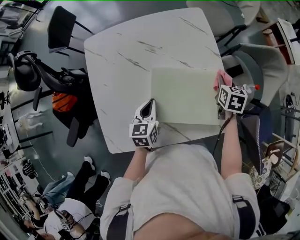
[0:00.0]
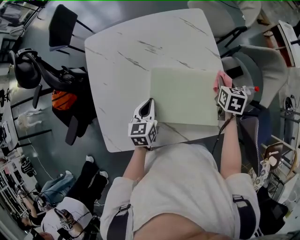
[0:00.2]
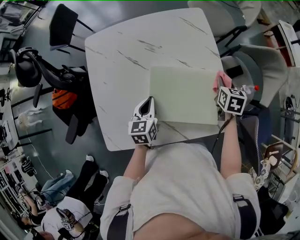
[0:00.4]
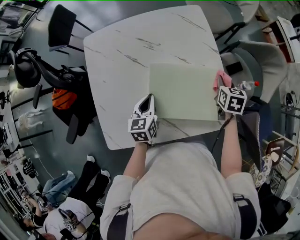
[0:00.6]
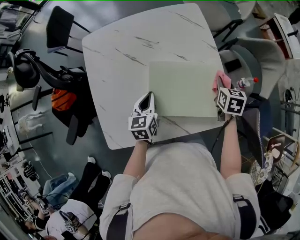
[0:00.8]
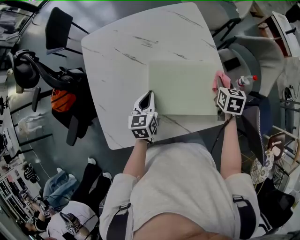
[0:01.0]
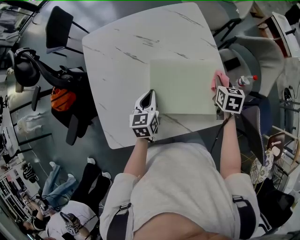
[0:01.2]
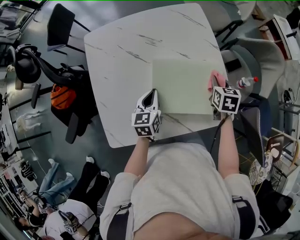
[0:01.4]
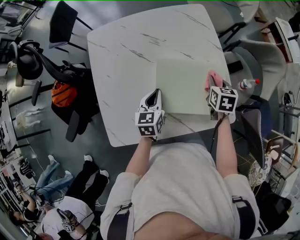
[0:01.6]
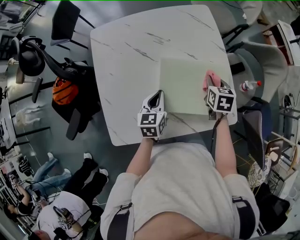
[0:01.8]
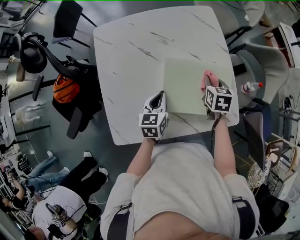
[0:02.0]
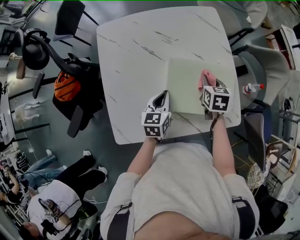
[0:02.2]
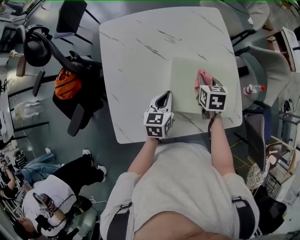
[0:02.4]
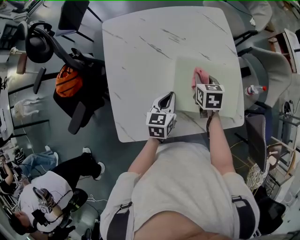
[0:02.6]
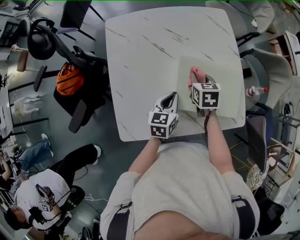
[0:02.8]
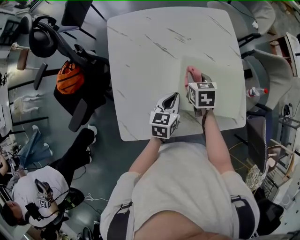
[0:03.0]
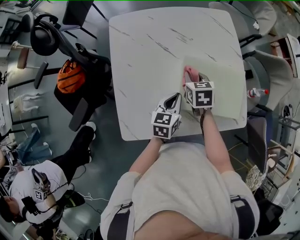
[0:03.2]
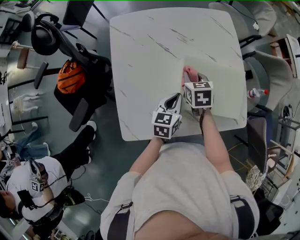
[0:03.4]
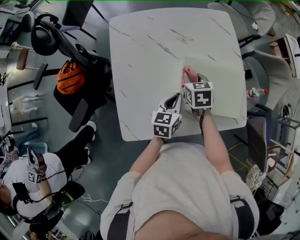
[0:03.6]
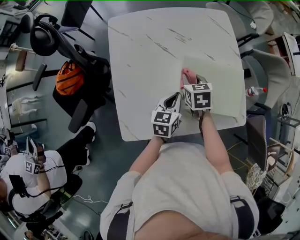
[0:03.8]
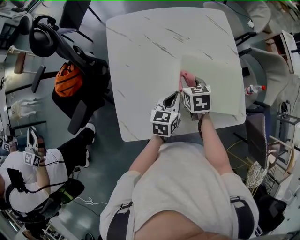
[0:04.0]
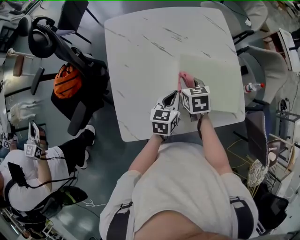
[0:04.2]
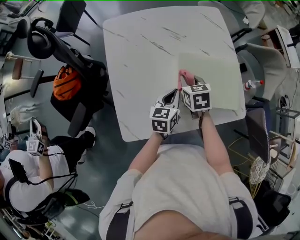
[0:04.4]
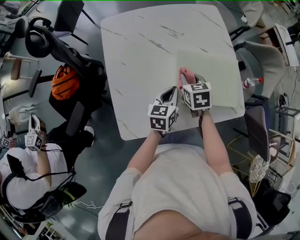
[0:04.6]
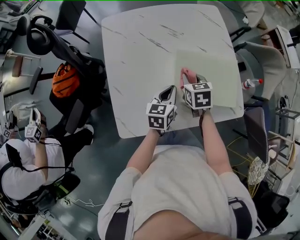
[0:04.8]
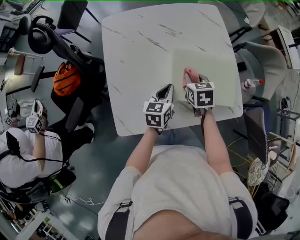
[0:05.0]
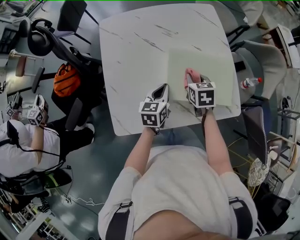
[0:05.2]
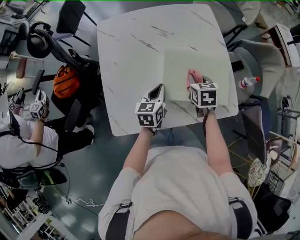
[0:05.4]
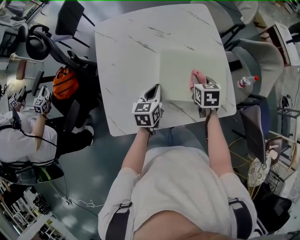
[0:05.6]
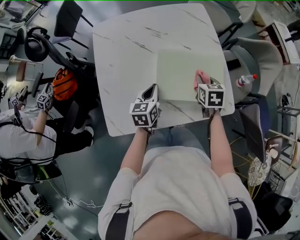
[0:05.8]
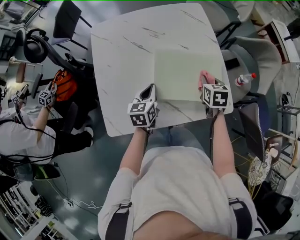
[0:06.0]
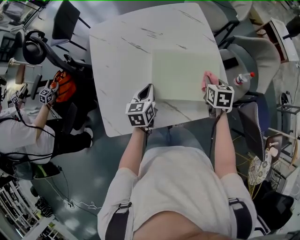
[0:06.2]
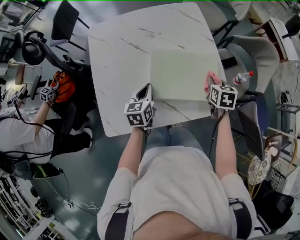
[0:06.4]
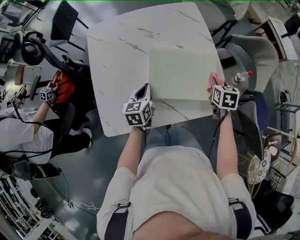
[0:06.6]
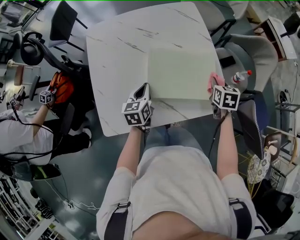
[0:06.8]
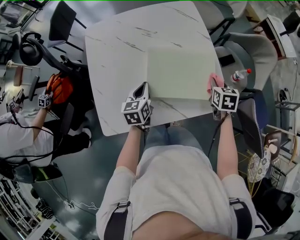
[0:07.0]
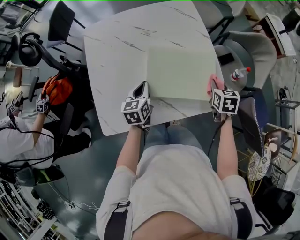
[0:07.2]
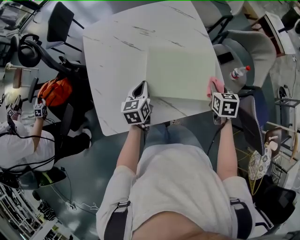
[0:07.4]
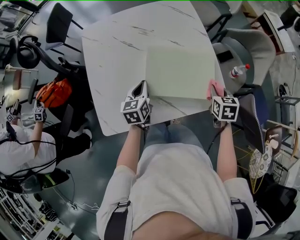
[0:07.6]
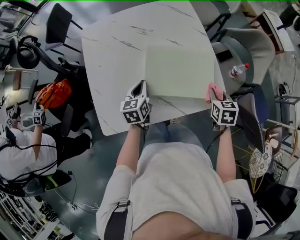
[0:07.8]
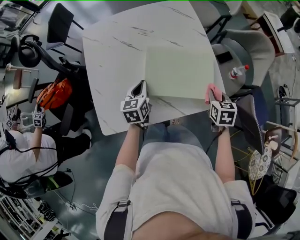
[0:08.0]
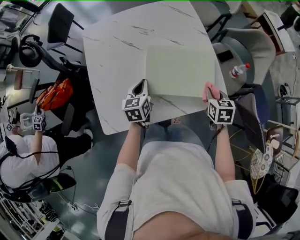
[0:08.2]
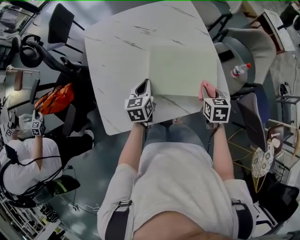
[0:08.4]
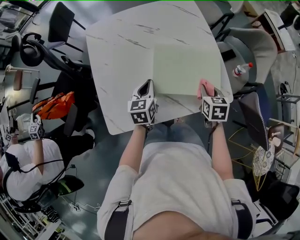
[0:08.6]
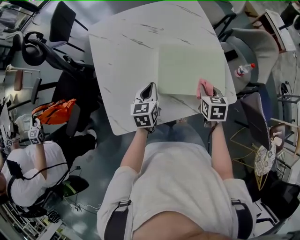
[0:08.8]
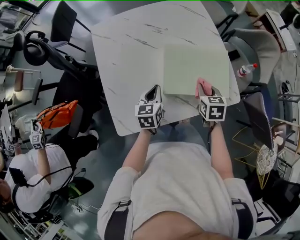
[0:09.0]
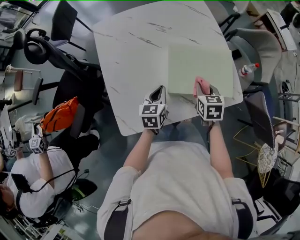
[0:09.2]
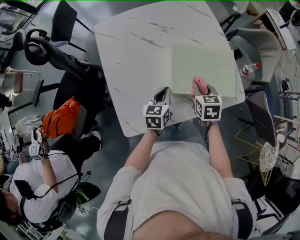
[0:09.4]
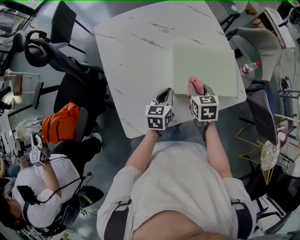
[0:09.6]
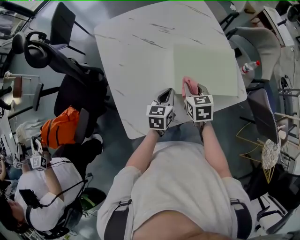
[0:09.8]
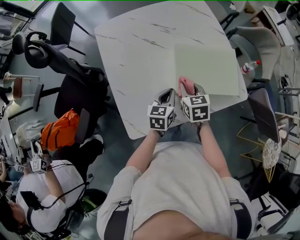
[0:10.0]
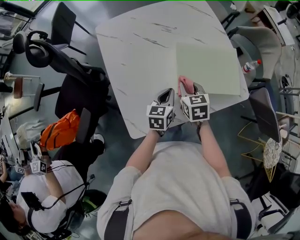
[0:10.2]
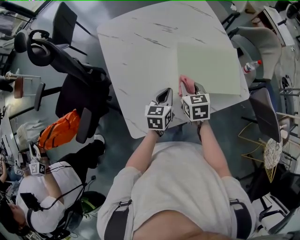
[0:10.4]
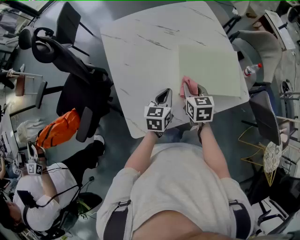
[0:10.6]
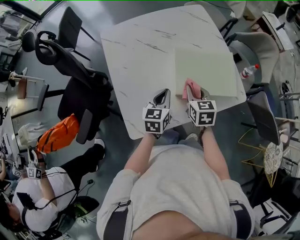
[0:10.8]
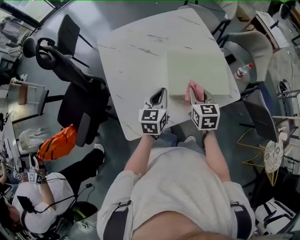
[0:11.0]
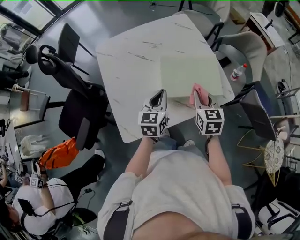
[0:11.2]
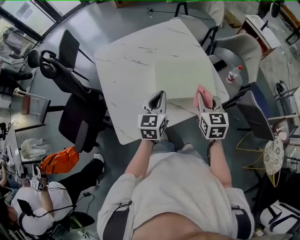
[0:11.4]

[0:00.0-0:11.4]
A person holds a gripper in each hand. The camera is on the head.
0:00.0 to 0:01.4: The right gripper is displaced backward by roughly 5 cm.
0:01.4 to 0:02.8: The right gripper shifts some 20 cm to the left.
0:02.8 to 0:04.2: The right gripper heads to the left, covering roughly 5 cm.
0:04.2 to 0:05.6: The right gripper travels to the right by some 15 cm.
0:05.6 to 0:07.2: The right gripper is displaced to the right by approximately 15 cm.
0:07.2 to 0:08.6: The right gripper is displaced to the left by approximately 10 cm.
0:08.6 to 0:10.0: The right gripper moves to the left, about 20 cm.
0:10.0 to 0:11.4: The right gripper moves to the right and upward, about 20 cm, and swivels some 20 degrees, while the left gripper shifts approximately 15 cm upward, and rotates some 20 degrees.

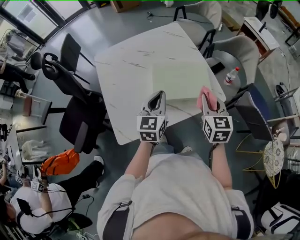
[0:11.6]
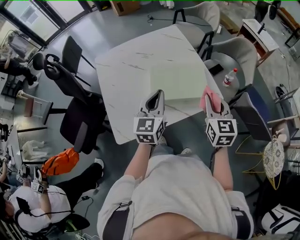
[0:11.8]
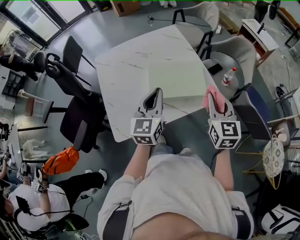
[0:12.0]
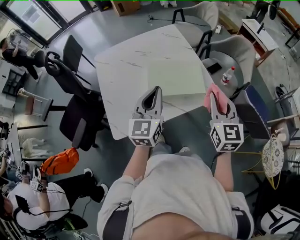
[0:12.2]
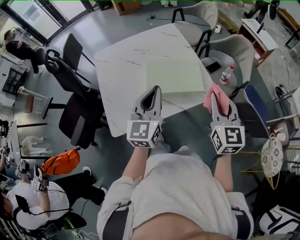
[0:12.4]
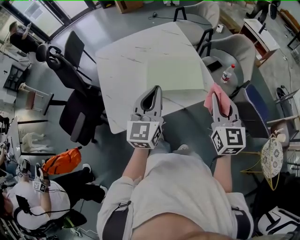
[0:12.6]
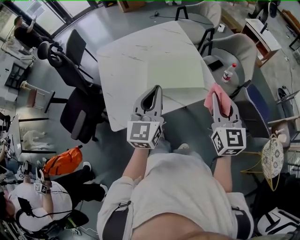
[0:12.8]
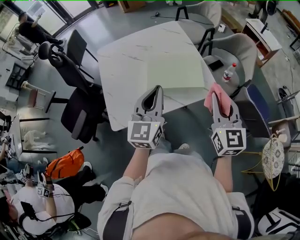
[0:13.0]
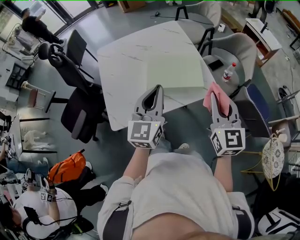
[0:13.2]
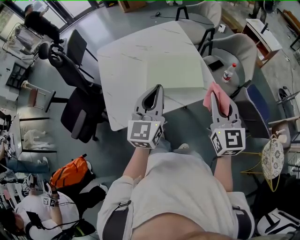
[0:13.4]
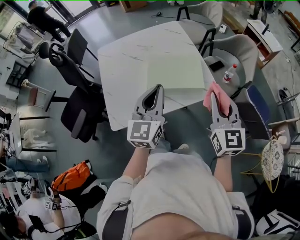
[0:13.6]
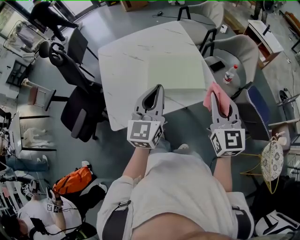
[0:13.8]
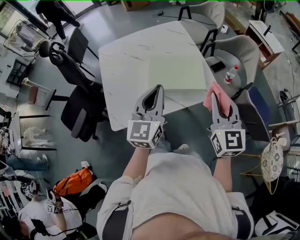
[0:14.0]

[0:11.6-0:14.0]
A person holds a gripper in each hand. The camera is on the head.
0:11.6 to 0:12.8: The right gripper travels upward, backward and to the right by approximately 15 cm. Meanwhile the left gripper heads upward and backward, covering about 10 cm.
0:12.8 to 0:14.0: There are only small adjustments of the grippers.

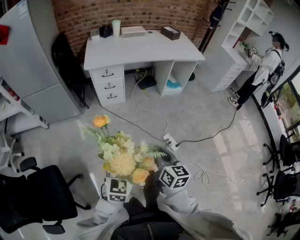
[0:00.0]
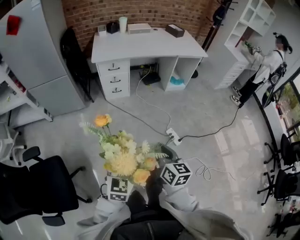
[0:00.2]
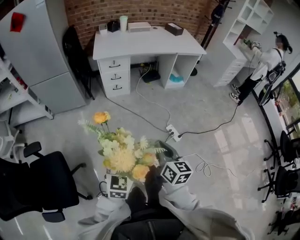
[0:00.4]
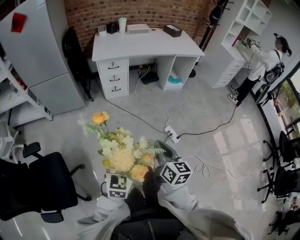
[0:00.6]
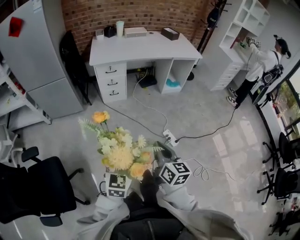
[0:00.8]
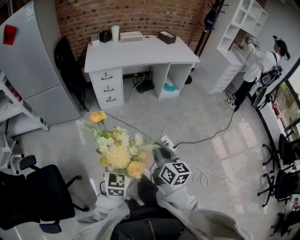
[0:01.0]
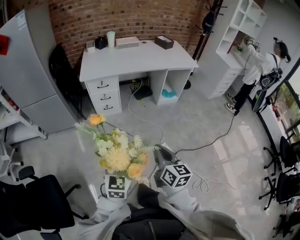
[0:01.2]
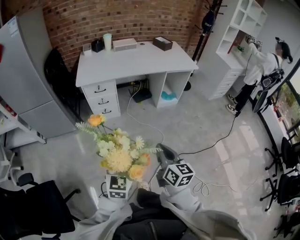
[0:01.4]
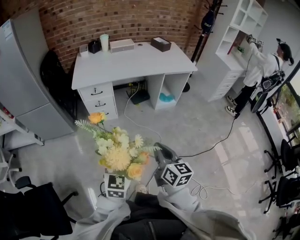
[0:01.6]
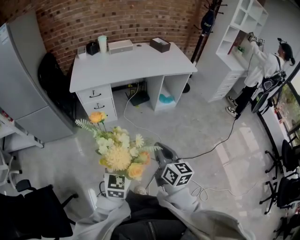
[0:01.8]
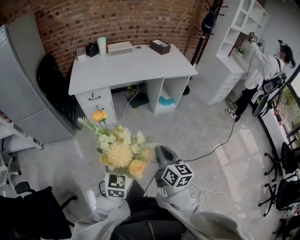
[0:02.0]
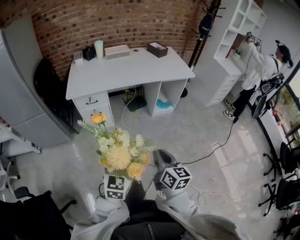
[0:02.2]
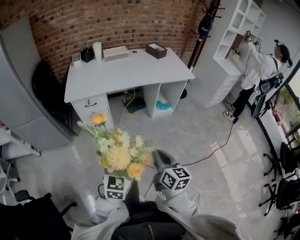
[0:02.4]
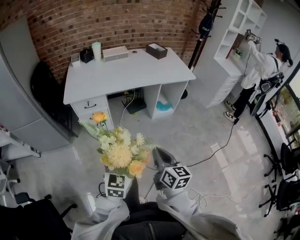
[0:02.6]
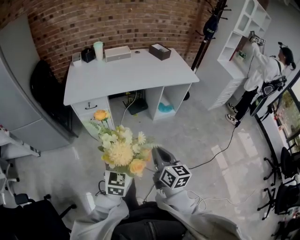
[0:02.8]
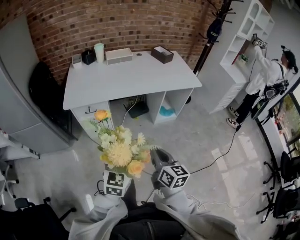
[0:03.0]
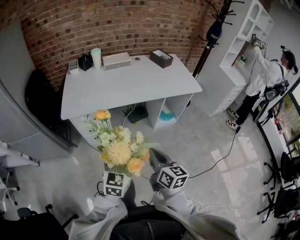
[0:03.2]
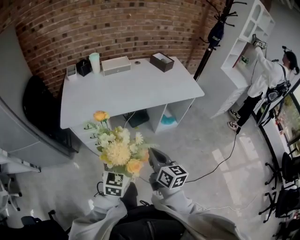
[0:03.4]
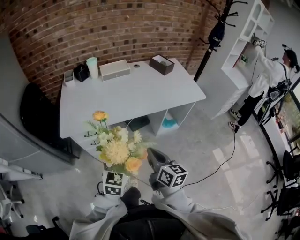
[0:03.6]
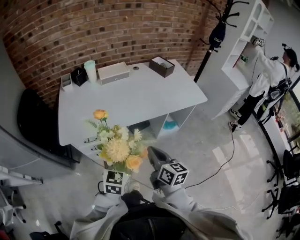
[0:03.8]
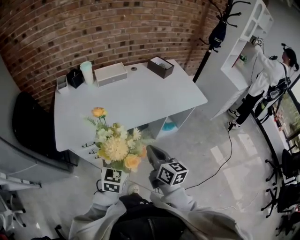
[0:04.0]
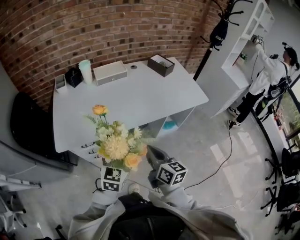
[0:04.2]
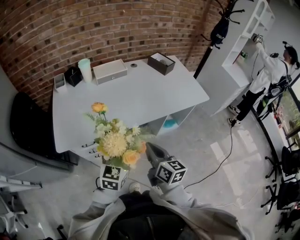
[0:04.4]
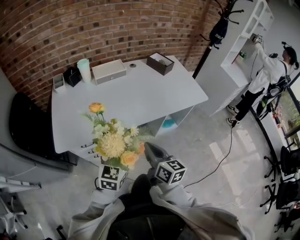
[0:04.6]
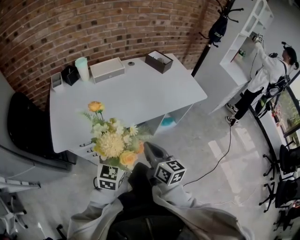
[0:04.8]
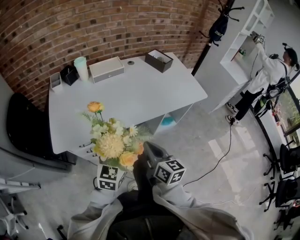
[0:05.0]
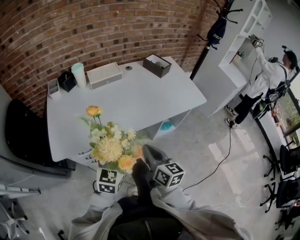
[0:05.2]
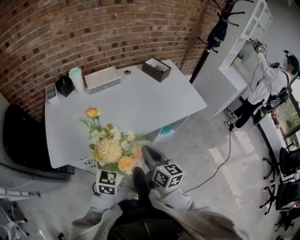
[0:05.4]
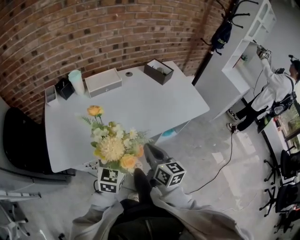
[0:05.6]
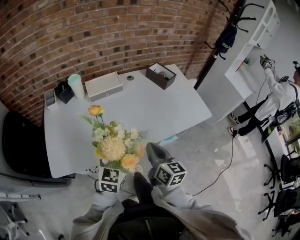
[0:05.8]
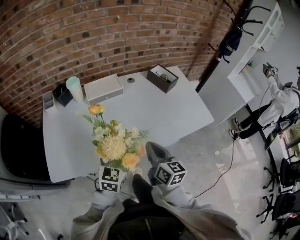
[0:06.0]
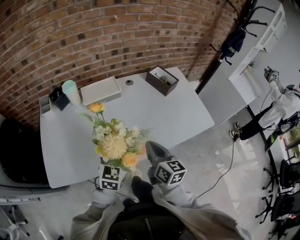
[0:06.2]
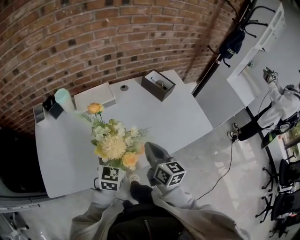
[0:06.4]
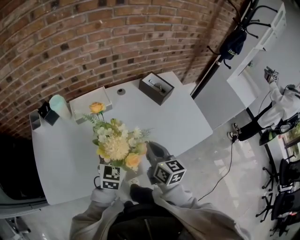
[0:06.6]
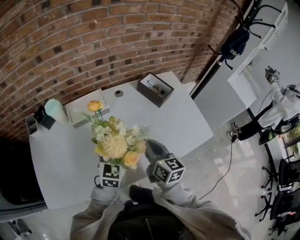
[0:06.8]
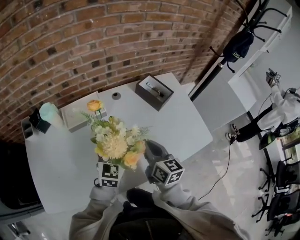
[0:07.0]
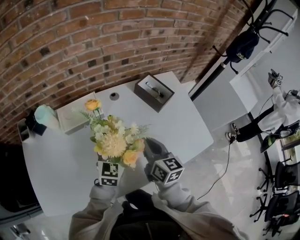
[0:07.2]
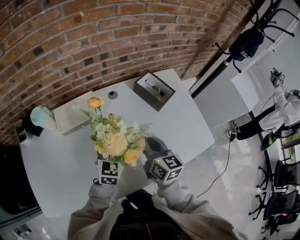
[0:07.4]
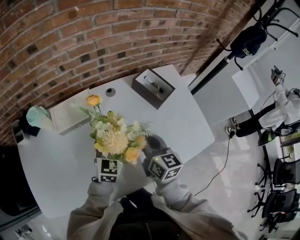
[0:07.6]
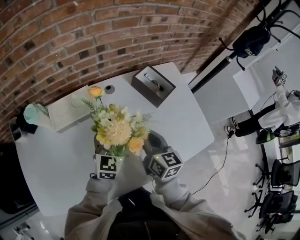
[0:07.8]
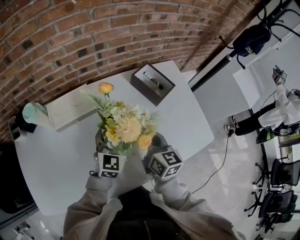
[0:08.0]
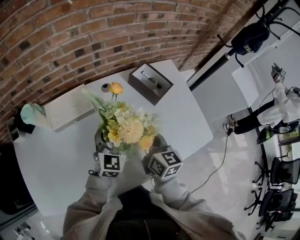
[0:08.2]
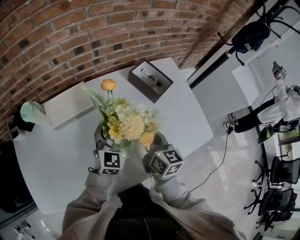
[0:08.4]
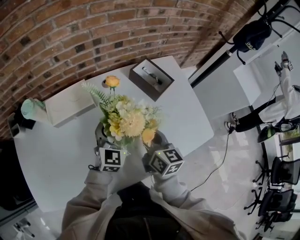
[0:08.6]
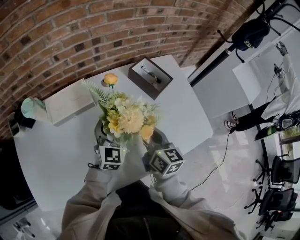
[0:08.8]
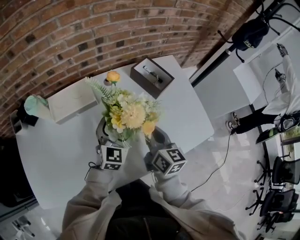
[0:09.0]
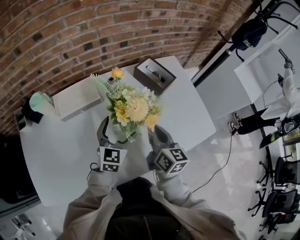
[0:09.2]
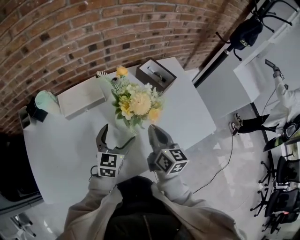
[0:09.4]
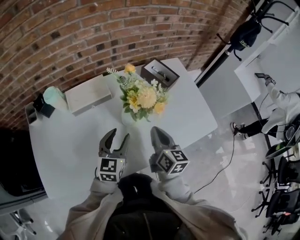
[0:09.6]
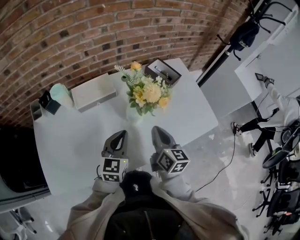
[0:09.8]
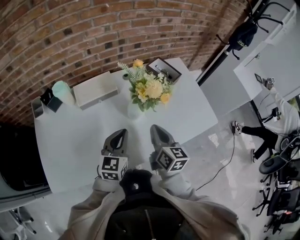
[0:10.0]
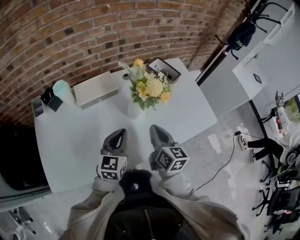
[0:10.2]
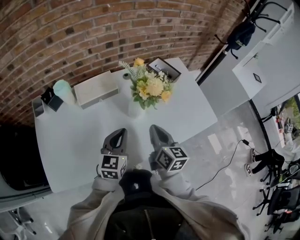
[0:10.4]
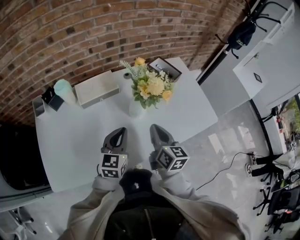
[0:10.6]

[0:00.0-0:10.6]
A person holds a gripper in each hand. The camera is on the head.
0:00.0 to 0:01.6: The grippers both shift forward and to the right by approximately 15 cm.
0:01.6 to 0:03.0: Both grippers travel together forward, roughly 20 cm.
0:03.0 to 0:04.6: The two grippers go some 30 cm forward.
0:04.6 to 0:06.0: Both grippers move forward, approximately 20 cm.
0:06.0 to 0:07.6: Both grippers travel together forward, approximately 30 cm.
0:07.6 to 0:09.0: The left gripper changes place by approximately 5 cm.
0:09.0 to 0:10.6: The right gripper heads backward and to the left, covering some 15 cm. The left gripper moves backward, to the left and upward, roughly 20 cm, and closes its fingers.
